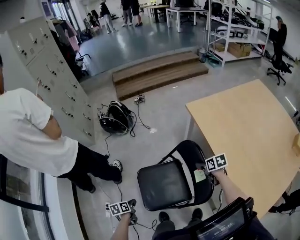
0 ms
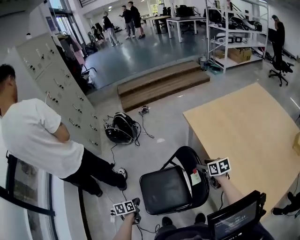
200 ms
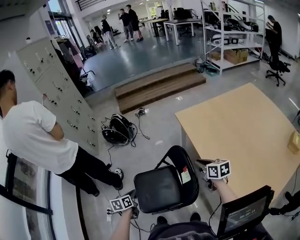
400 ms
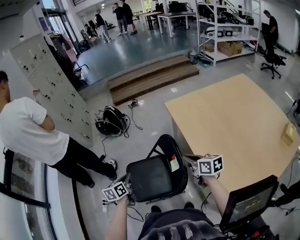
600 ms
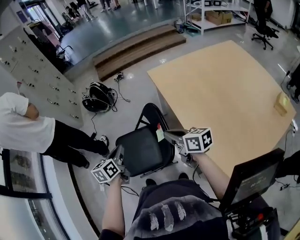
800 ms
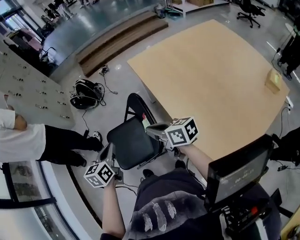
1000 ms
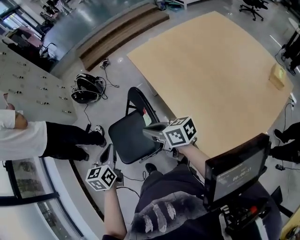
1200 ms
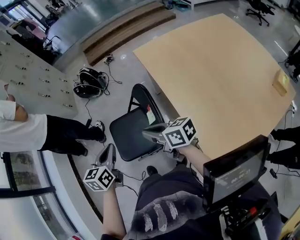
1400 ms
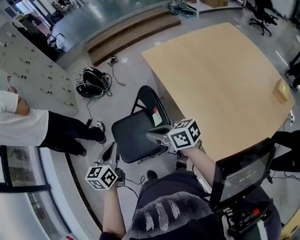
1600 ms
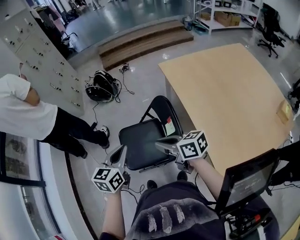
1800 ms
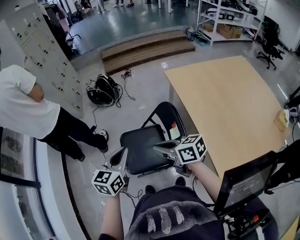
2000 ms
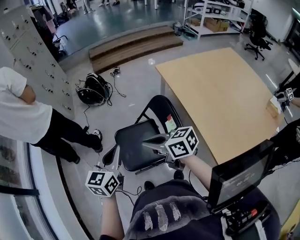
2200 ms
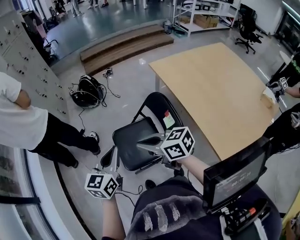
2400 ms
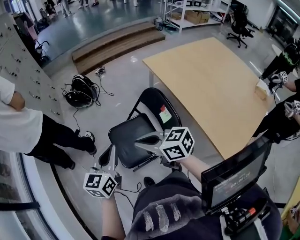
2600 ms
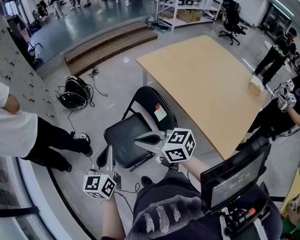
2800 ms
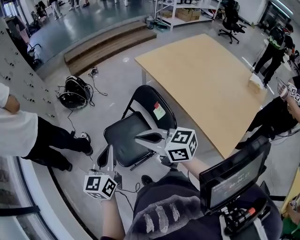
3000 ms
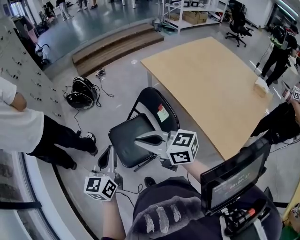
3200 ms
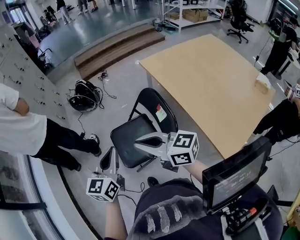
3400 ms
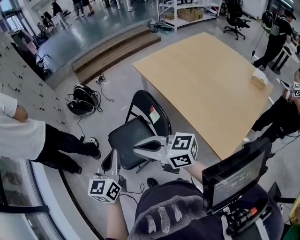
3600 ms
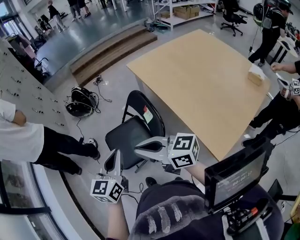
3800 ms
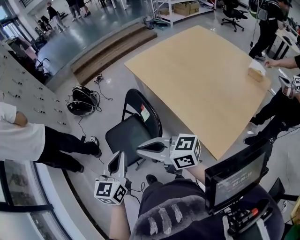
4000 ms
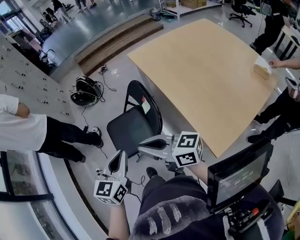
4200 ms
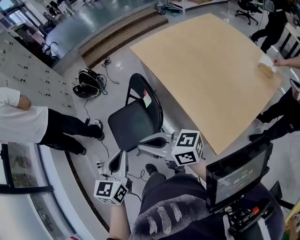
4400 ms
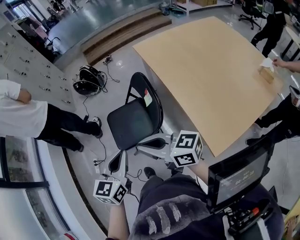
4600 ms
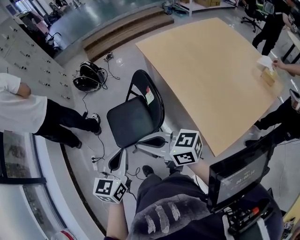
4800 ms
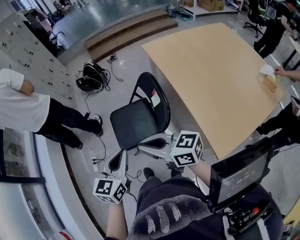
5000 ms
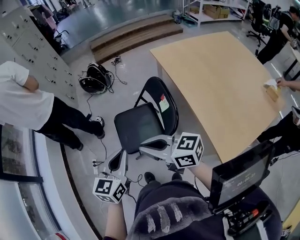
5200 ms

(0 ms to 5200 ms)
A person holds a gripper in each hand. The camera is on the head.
0 ms - 1800 ms: The right gripper moves upward, backward and to the left, approximately 30 cm, tilts its fingers about 40 degrees upward, and closes up. The left gripper moves upward and to the right, some 40 cm, and tilts its fingers some 30 degrees upward.
1800 ms - 3400 ms: The left gripper travels to the left by approximately 10 cm. The right gripper heads to the left, upward and backward, covering roughly 15 cm, and turns by about 20 degrees.
3400 ms - 5200 ms: Both grippers travel together backward, approximately 10 cm.

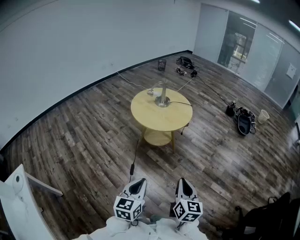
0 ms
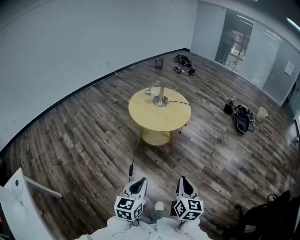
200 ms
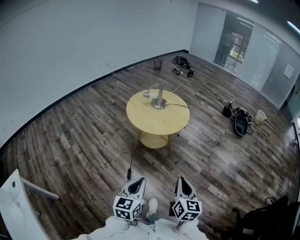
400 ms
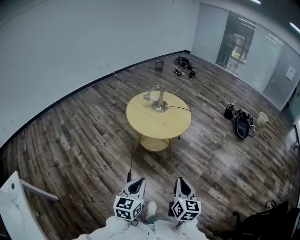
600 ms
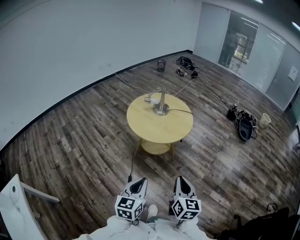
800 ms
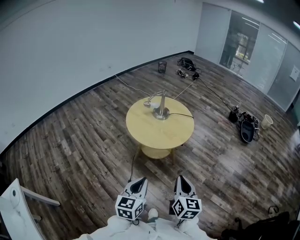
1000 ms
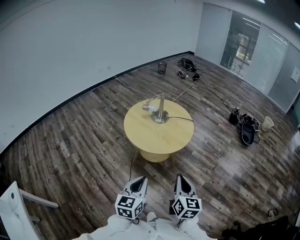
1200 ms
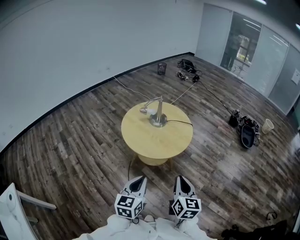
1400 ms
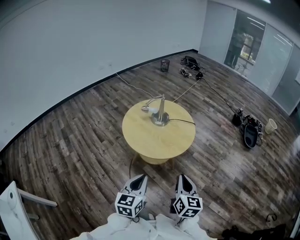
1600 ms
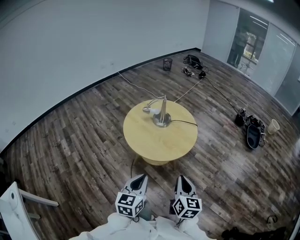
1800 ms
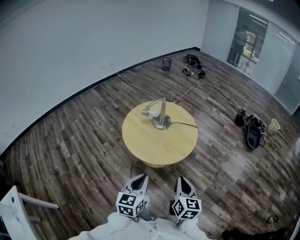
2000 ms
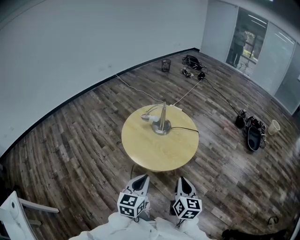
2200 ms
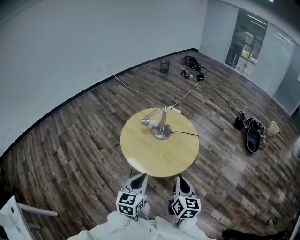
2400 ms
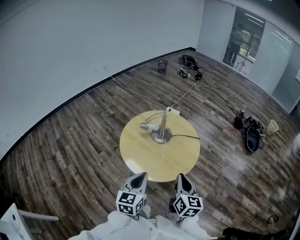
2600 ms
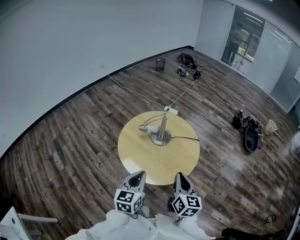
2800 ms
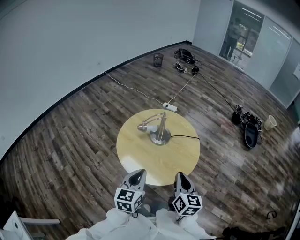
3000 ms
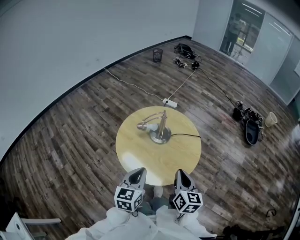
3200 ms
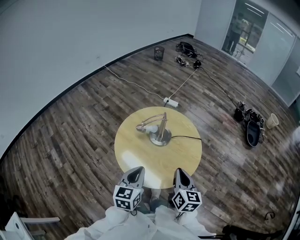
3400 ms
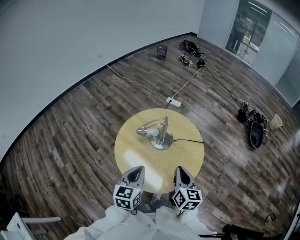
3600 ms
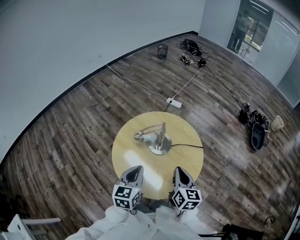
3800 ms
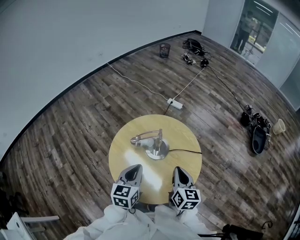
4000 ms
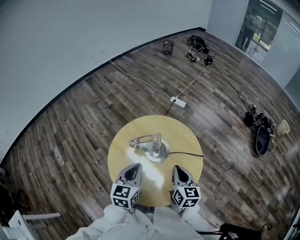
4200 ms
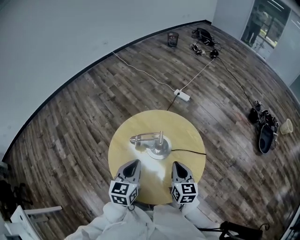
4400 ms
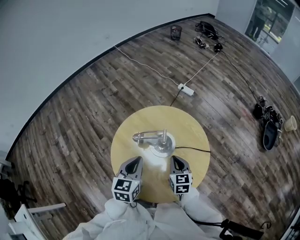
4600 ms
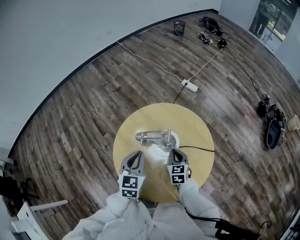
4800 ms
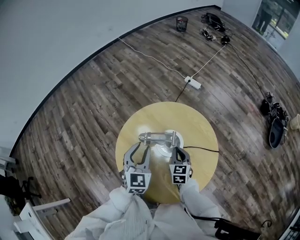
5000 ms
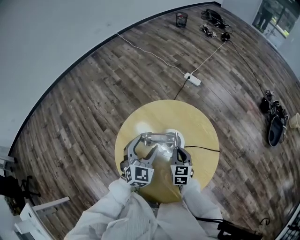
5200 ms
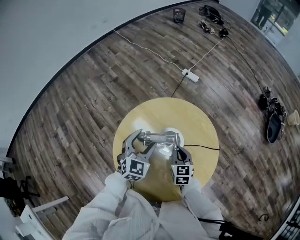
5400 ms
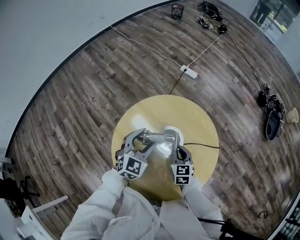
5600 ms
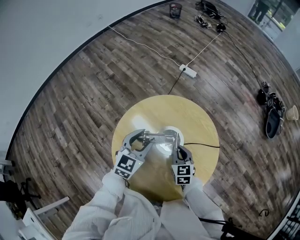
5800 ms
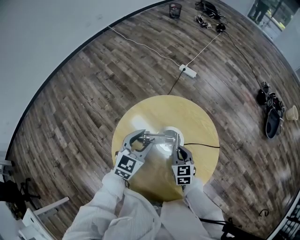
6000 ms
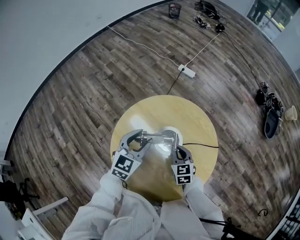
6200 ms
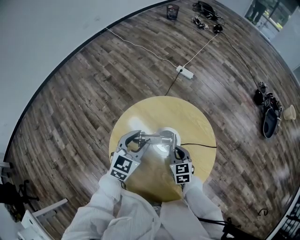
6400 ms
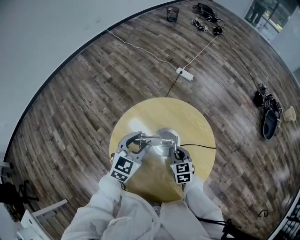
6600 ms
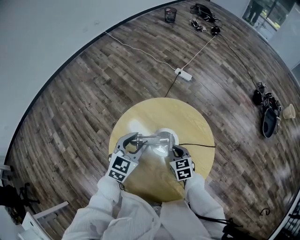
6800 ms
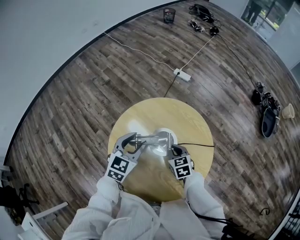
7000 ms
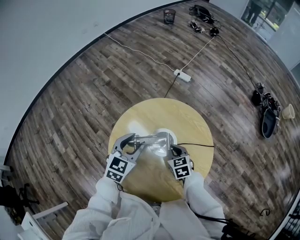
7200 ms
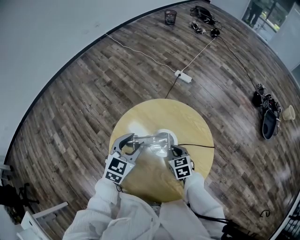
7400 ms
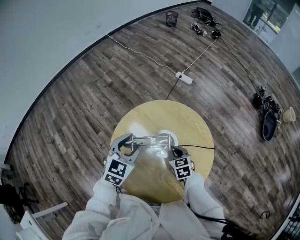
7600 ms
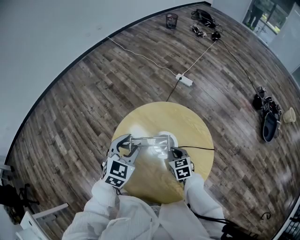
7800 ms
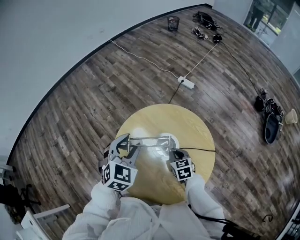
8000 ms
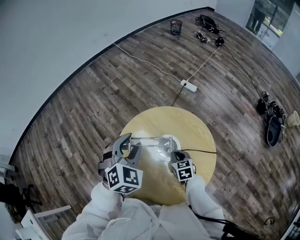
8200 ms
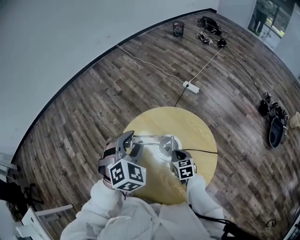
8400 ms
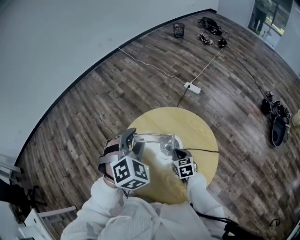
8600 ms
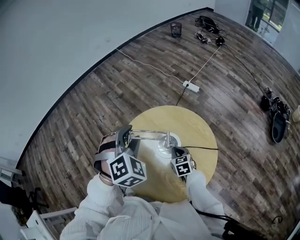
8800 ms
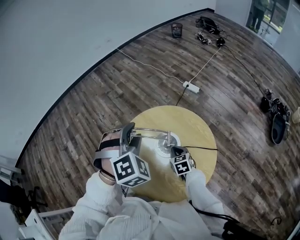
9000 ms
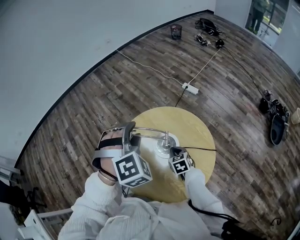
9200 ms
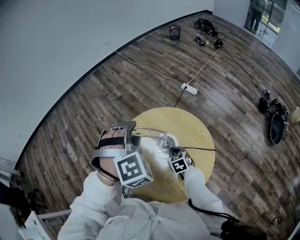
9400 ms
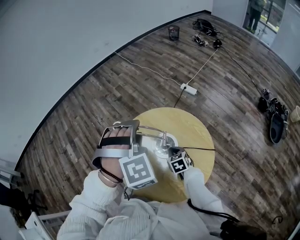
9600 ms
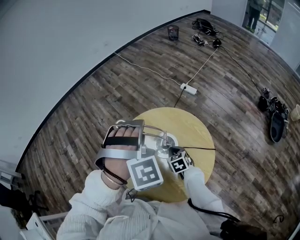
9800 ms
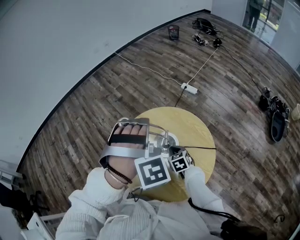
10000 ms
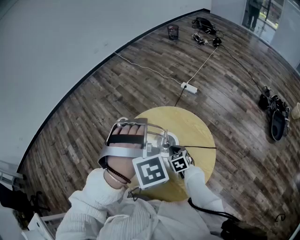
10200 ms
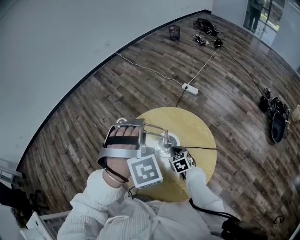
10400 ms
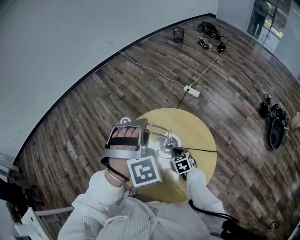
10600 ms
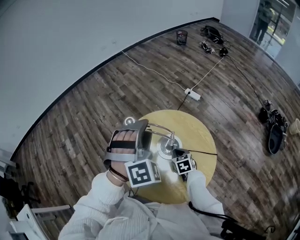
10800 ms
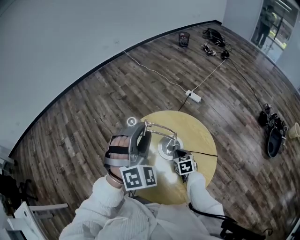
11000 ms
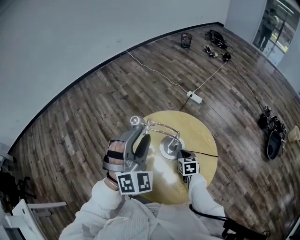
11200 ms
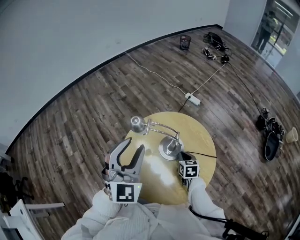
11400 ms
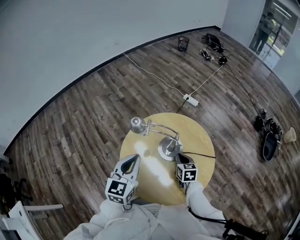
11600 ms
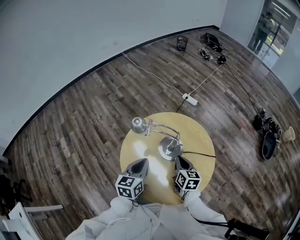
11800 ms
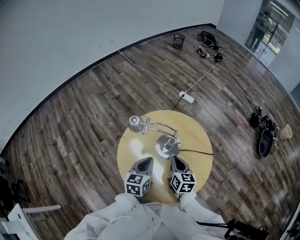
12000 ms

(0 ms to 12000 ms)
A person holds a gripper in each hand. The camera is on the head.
0 ms - 1600 ms: Both grippers travel together forward, some 30 cm.
1600 ms - 3000 ms: The grippers both shift forward by about 25 cm.
3000 ms - 4400 ms: Both grippers travel together forward, about 25 cm. The right gripper changes its angle by approximately 20 degrees.
4400 ms - 6000 ms: The right gripper moves downward, forward and to the left, approximately 15 cm; the left gripper moves forward and downward, some 15 cm, turns by approximately 30 degrees, and opens its fingers.
6000 ms - 7600 ms: The left gripper shifts by some 5 cm.
7600 ms - 9000 ms: The left gripper is displaced upward by roughly 15 cm, and rotates around the line of its fingers by about 40 degrees, clockwise from behind.
9000 ms - 10400 ms: The left gripper changes place by about 5 cm.
10400 ms - 12000 ms: The left gripper shifts approximately 20 cm downward and backward, twists roughly 90 degrees counterclockwise, seen from behind, and closes. The right gripper is displaced upward and backward by some 10 cm, and turns by approximately 30 degrees.

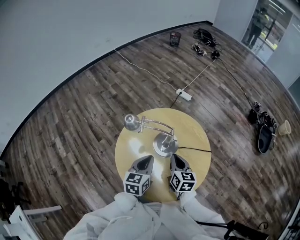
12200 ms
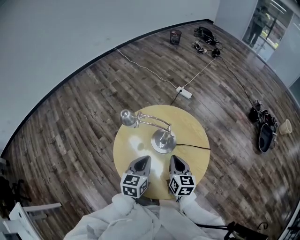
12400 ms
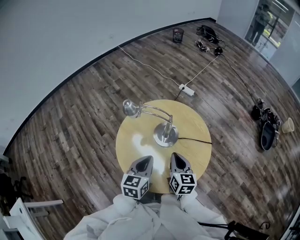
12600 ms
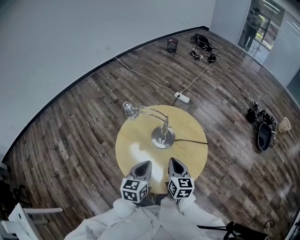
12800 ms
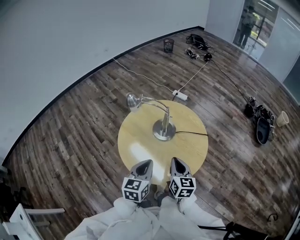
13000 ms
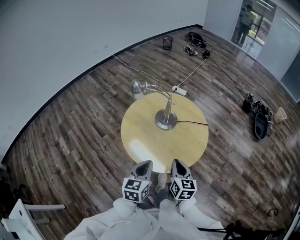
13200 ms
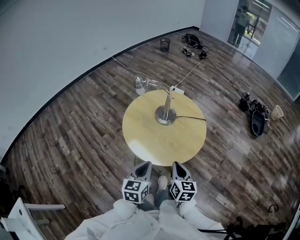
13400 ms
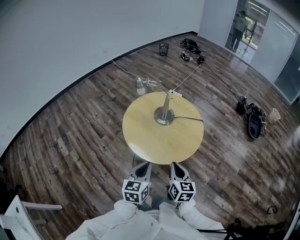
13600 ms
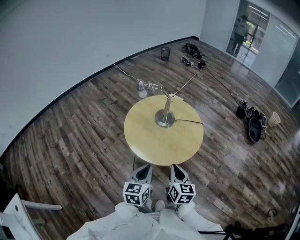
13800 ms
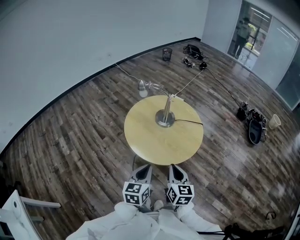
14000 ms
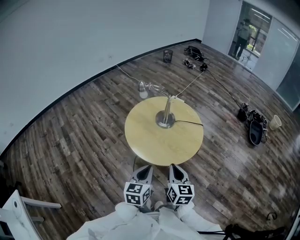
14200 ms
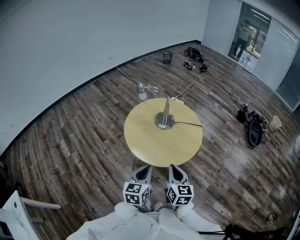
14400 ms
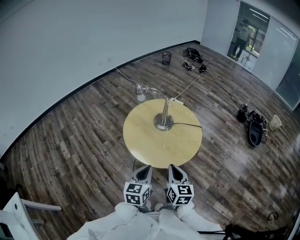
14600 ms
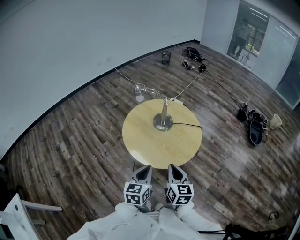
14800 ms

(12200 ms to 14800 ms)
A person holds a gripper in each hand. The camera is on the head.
12200 ms - 13400 ms: Both grippers travel together backward, approximately 30 cm.
13400 ms - 14800 ms: The right gripper goes some 5 cm upward, while the left gripper shifts by about 5 cm.

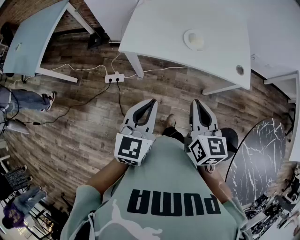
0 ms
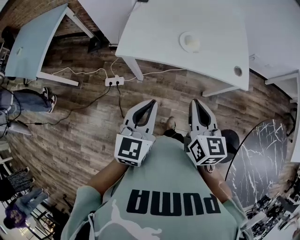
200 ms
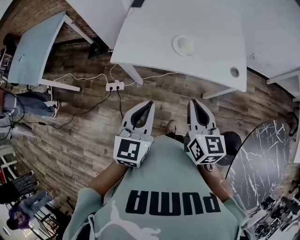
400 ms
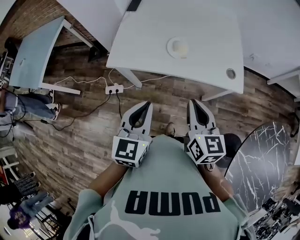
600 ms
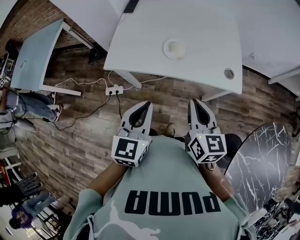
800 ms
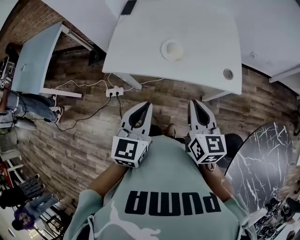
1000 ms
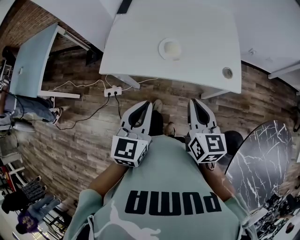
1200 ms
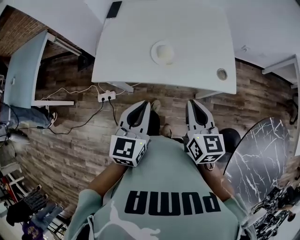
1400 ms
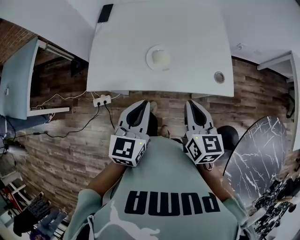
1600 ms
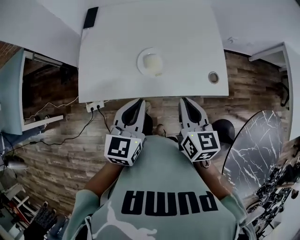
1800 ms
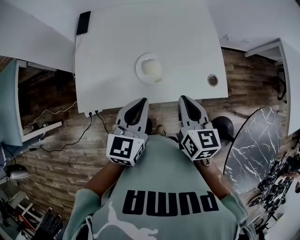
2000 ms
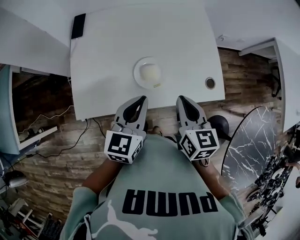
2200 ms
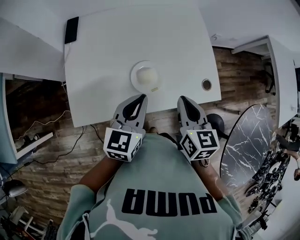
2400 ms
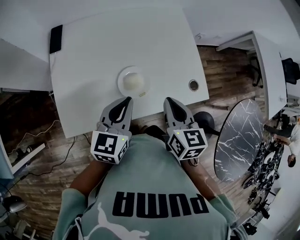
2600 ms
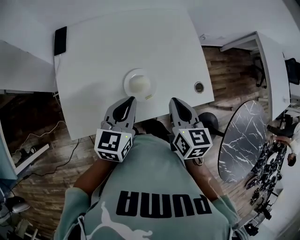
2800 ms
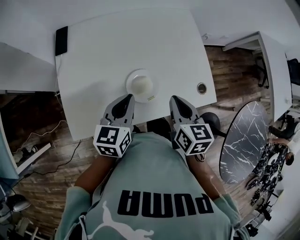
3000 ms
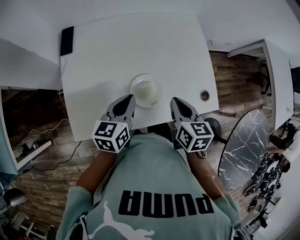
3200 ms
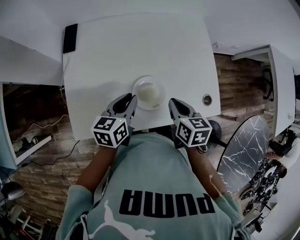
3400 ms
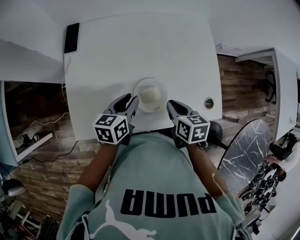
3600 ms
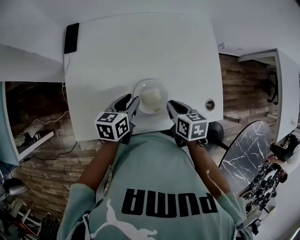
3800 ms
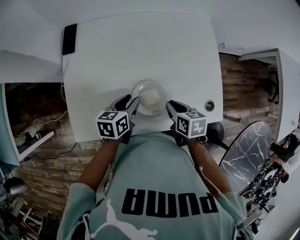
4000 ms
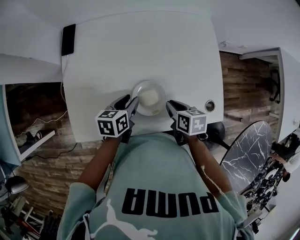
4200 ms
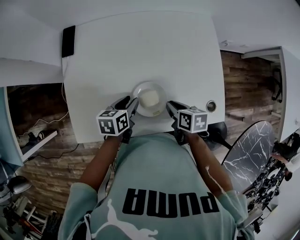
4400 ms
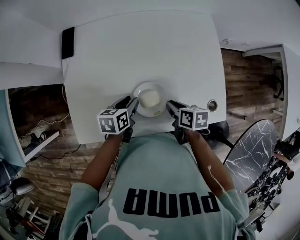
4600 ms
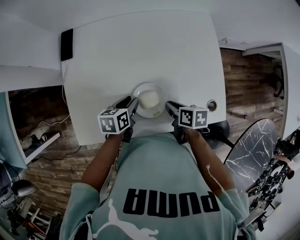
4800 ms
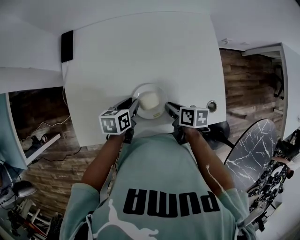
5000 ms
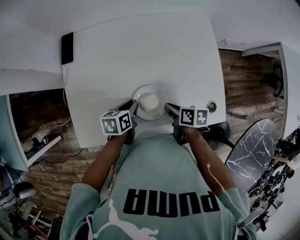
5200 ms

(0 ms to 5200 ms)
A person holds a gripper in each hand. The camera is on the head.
0 ms - 1800 ms: Both grippers travel together forward and to the right, roughly 25 cm.
1800 ms - 3400 ms: The right gripper heads forward and downward, covering about 15 cm, and swivels approximately 20 degrees, while the left gripper heads forward, downward and to the left, covering roughly 20 cm, and rotates roughly 20 degrees.
3400 ms - 5200 ms: The two grippers go about 10 cm downward. The left gripper swivels roughly 20 degrees, while the right gripper turns by approximately 30 degrees.
